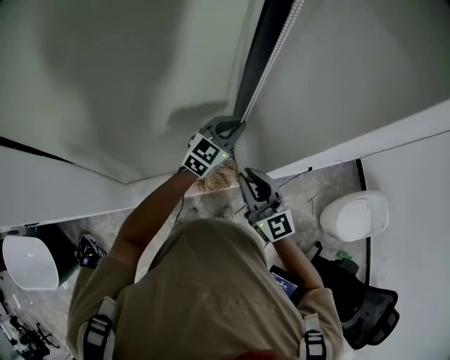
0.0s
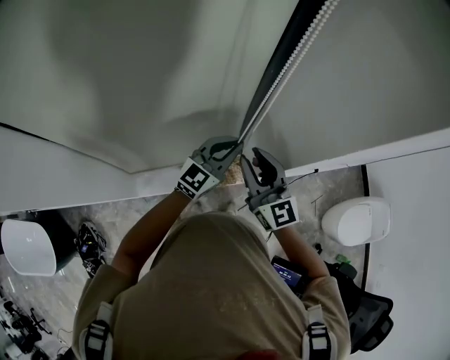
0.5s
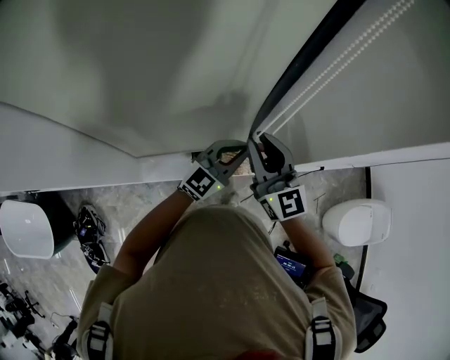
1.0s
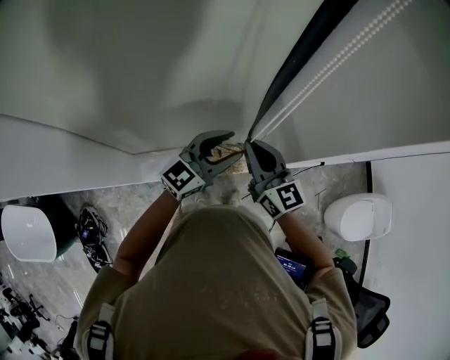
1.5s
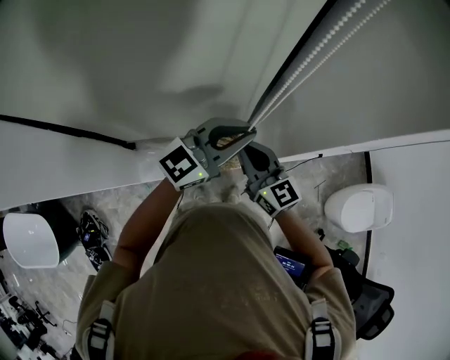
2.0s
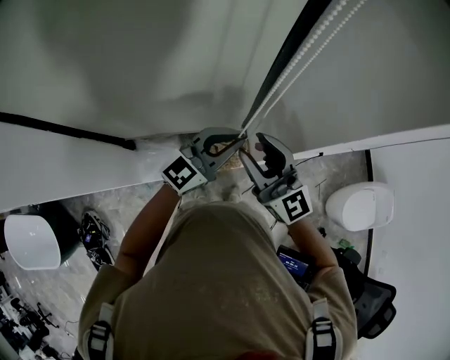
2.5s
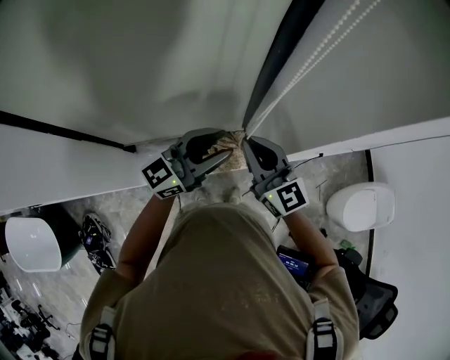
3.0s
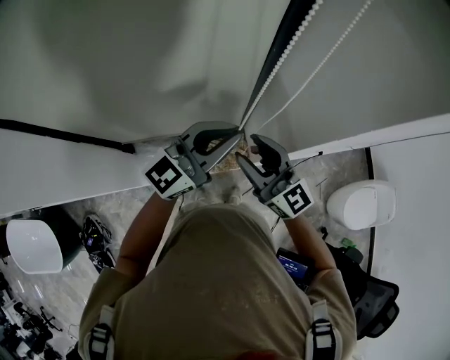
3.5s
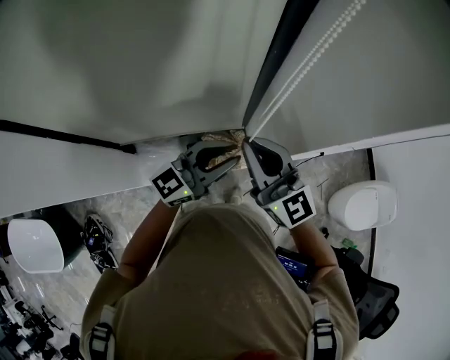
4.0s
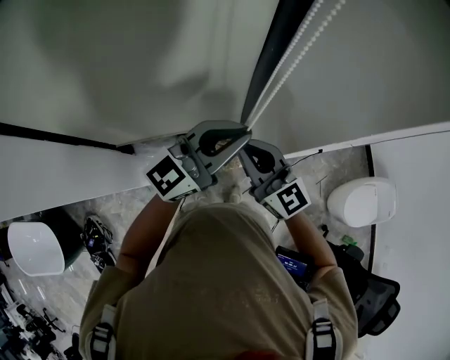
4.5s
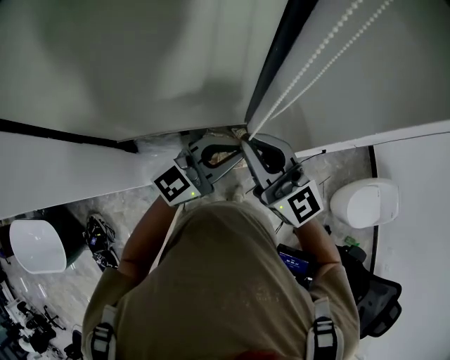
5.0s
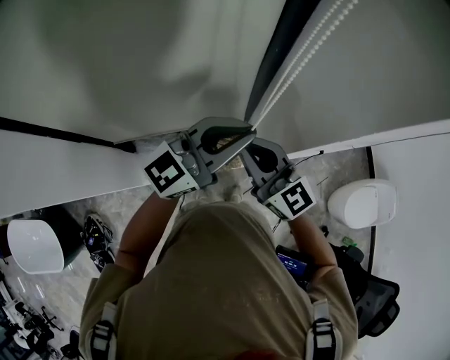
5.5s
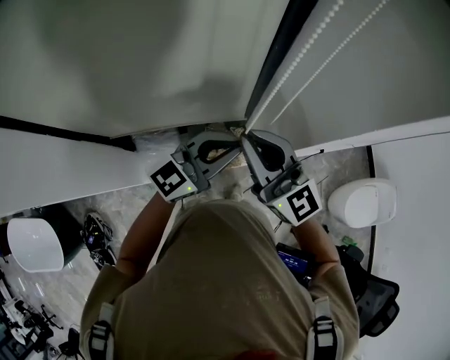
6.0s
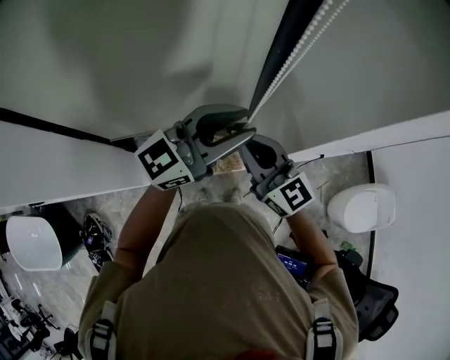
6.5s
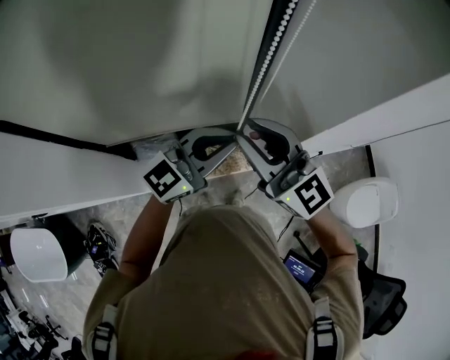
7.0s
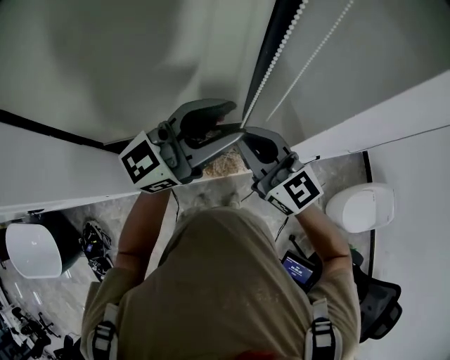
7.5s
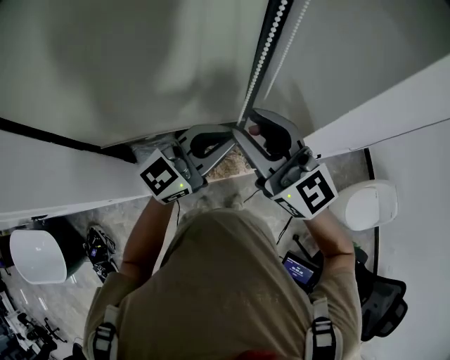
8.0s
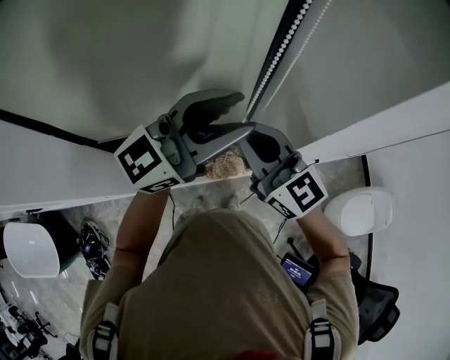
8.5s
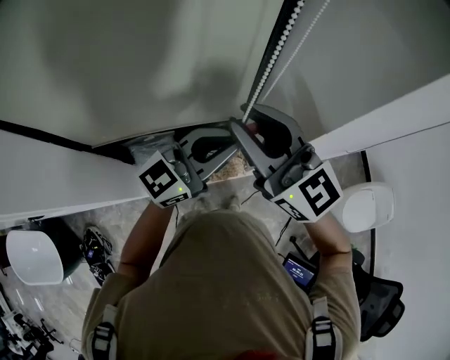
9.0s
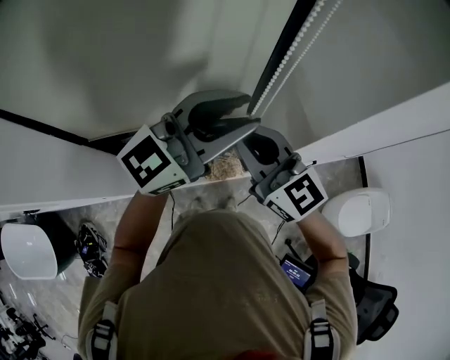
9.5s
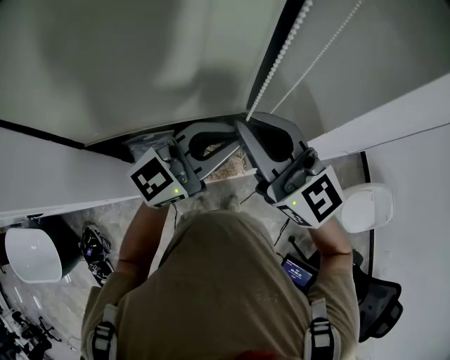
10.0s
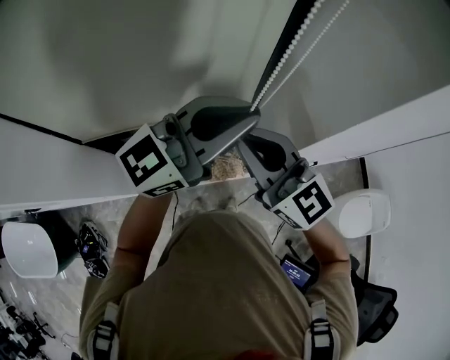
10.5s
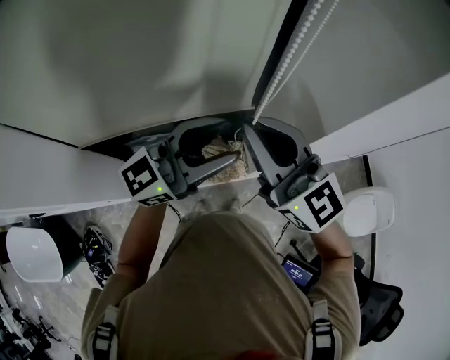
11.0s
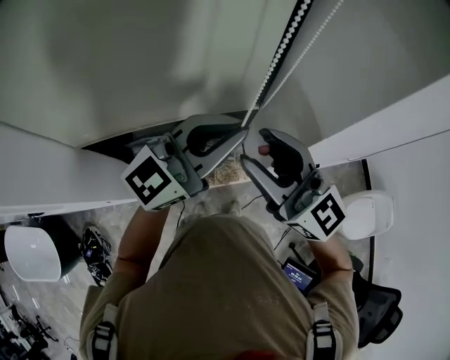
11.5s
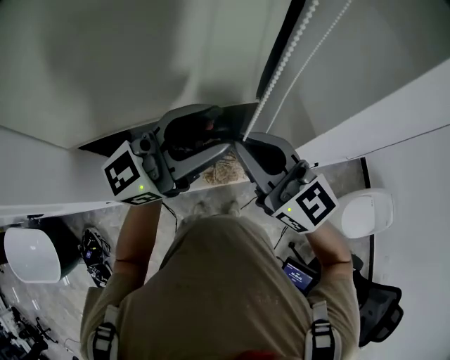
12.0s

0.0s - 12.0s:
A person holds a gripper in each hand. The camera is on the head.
0.0s - 2.0s: The left gripper heads backward and upward, covering about 15 cm, swivels roughly 20 degrees, and opens, then closes once more; the right gripper is displaced to the left by approximately 10 cm.
2.0s - 4.0s: The left gripper moves up and down over roughly 5 cm, changing direction 2 times, and opens, then closes once more; the right gripper moves up and down over approximately 10 cm, changing direction 2 times, and opens, then closes once more.
4.0s - 6.0s: The left gripper moves up and down over roughly 10 cm, changing direction 3 times; the right gripper swings up and down, some 5 cm each way, with 3 reversals.
6.0s - 8.0s: The right gripper moves up and down over roughly 10 cm, changing direction 3 times, and opens up. The left gripper moves up and down over roughly 15 cm, changing direction 3 times, and opens, then closes again.
8.0s - 10.0s: The left gripper moves up and down over roughly 10 cm, changing direction 3 times, and opens, then closes again. Meanwhile the right gripper closes up.
10.0s - 12.0s: The right gripper opens, then closes once more. Meanwhile the left gripper goes up and down, roughly 10 cm each way, reversing 2 times, and opens.

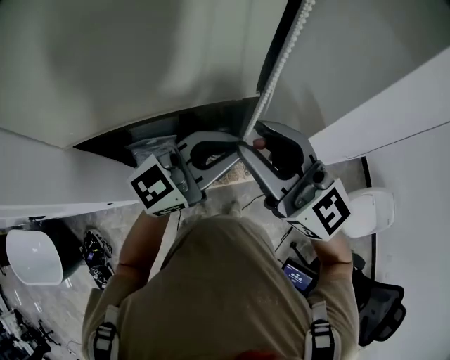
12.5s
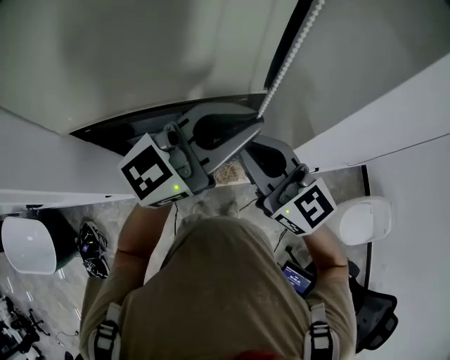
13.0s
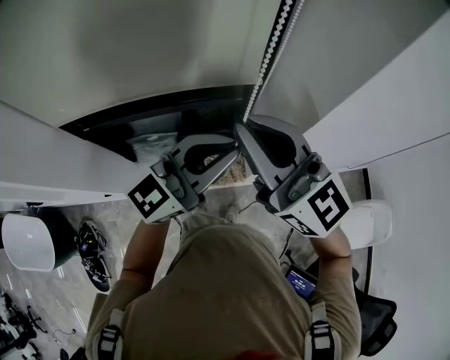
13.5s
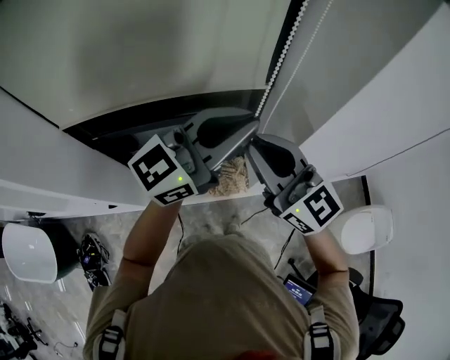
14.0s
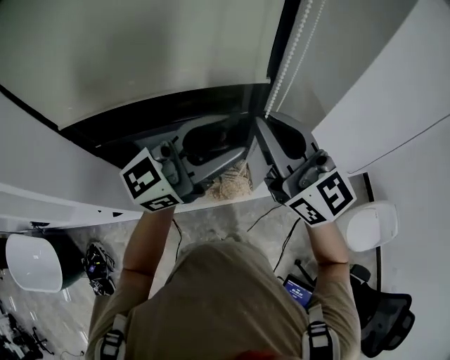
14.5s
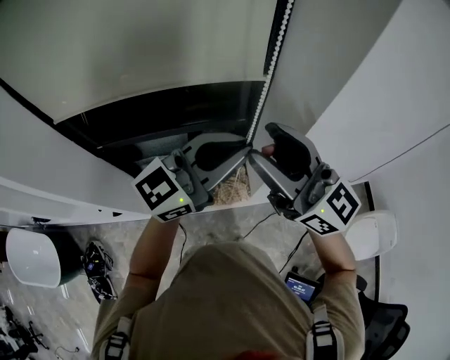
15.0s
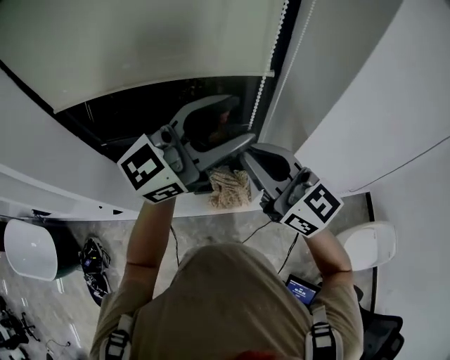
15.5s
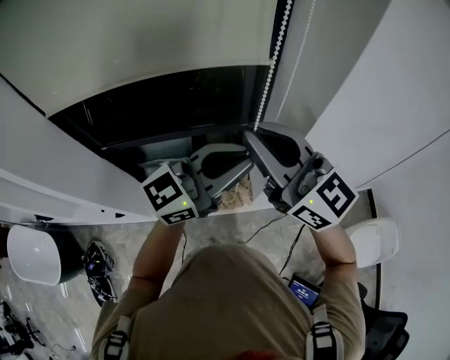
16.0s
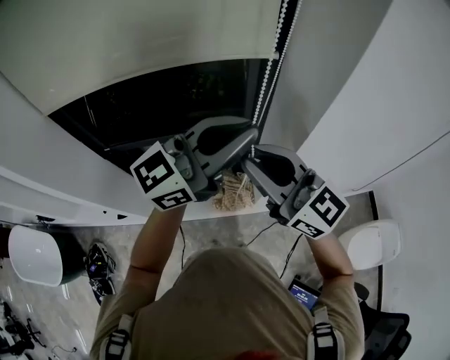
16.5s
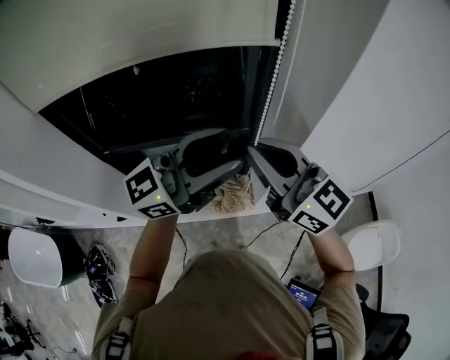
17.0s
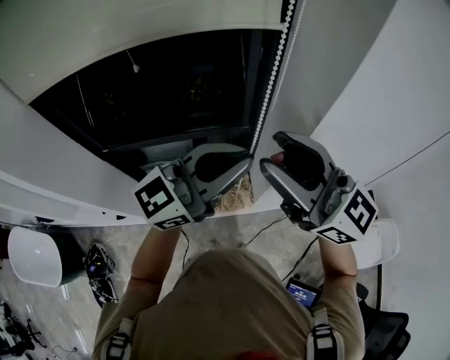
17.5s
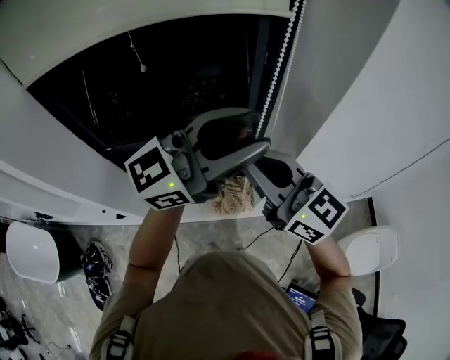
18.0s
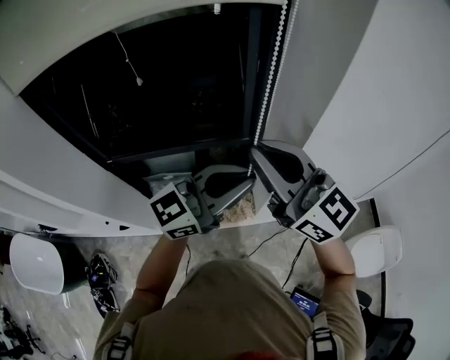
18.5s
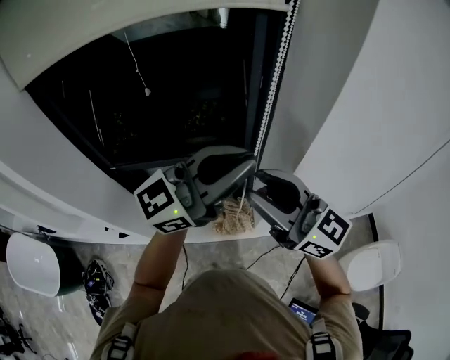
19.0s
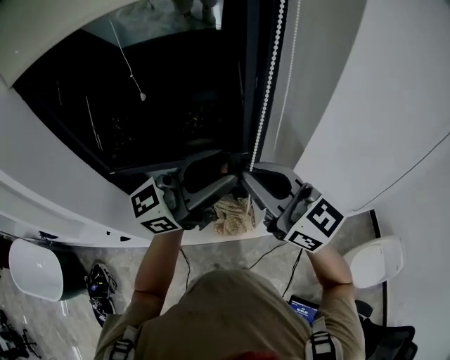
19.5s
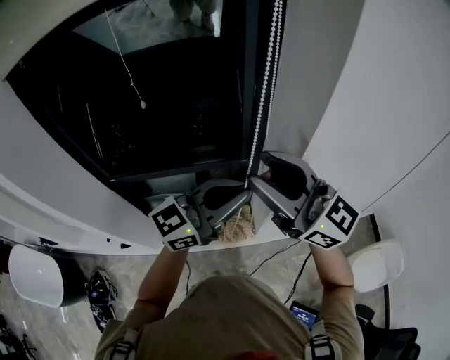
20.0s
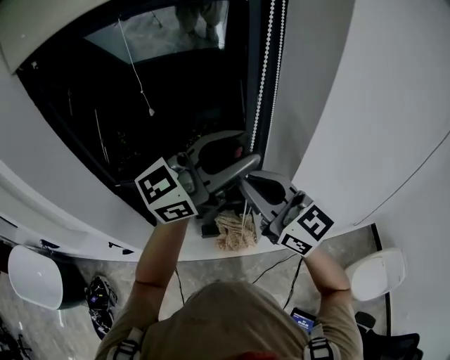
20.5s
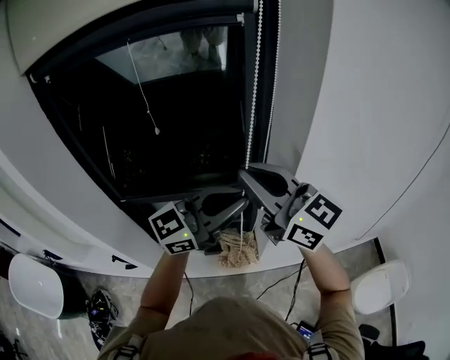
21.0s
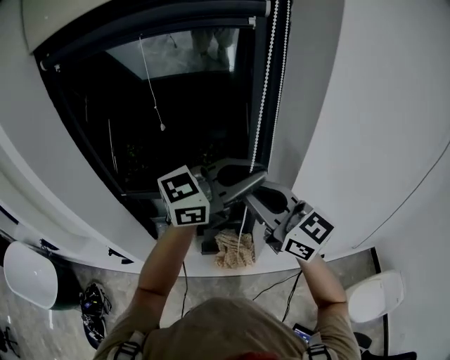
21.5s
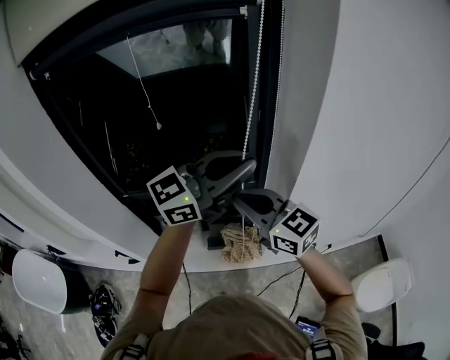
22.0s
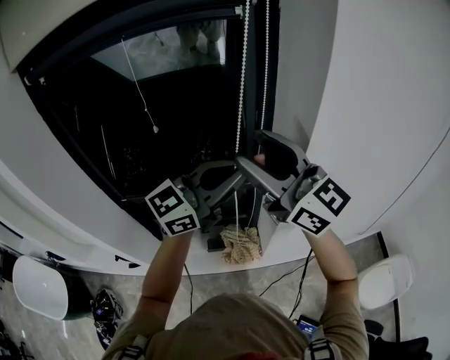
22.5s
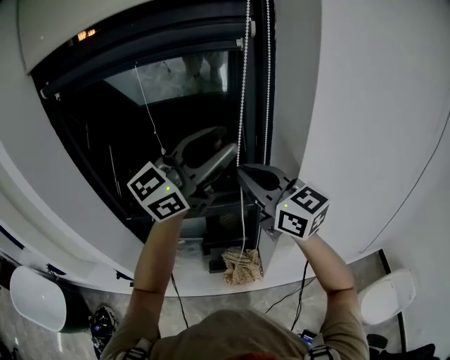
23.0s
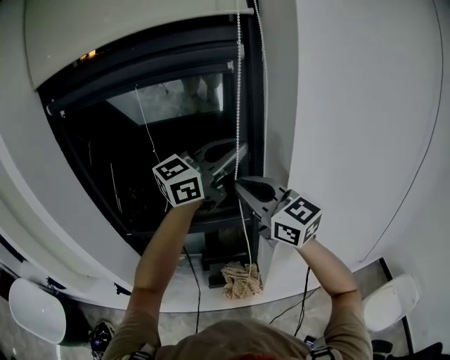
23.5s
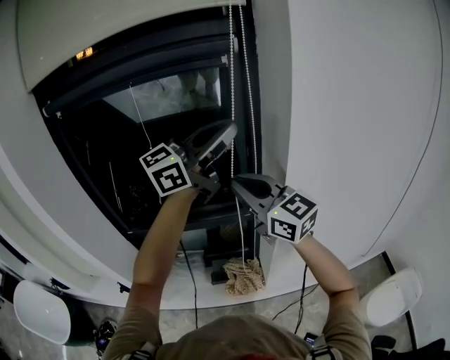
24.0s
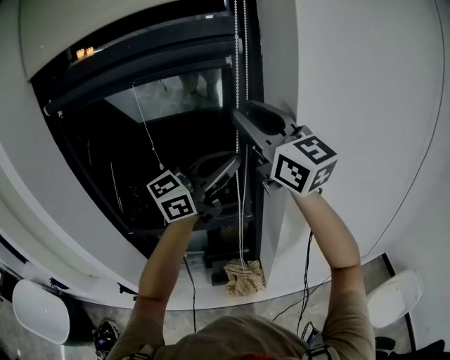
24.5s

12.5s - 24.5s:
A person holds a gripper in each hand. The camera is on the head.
12.5s - 14.5s: The left gripper moves up and down over some 10 cm, changing direction 2 times, and opens up. Meanwhile the right gripper moves up and down over about 10 cm, changing direction 3 times, and closes its fingers.
14.5s - 16.5s: The left gripper goes up and down, some 5 cm each way, reversing 2 times, and closes up, while the right gripper opens, then closes once more.
16.5s - 18.5s: The right gripper goes up and down, some 5 cm each way, reversing 2 times, and opens, then closes once more. Meanwhile the left gripper is displaced downward by about 5 cm, and opens and closes again.
18.5s - 20.5s: The left gripper swings up and down, about 15 cm each way, with 2 reversals, and opens up. Meanwhile the right gripper opens, then closes once more.
20.5s - 22.5s: The right gripper moves up and down over approximately 15 cm, changing direction 2 times, and opens its fingers; the left gripper closes up.
22.5s - 24.5s: Both grippers move upward, approximately 10 cm. The right gripper closes; the left gripper opens and closes again.

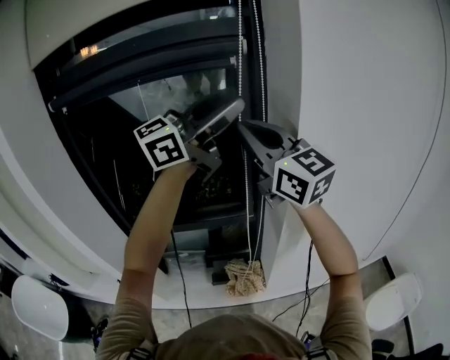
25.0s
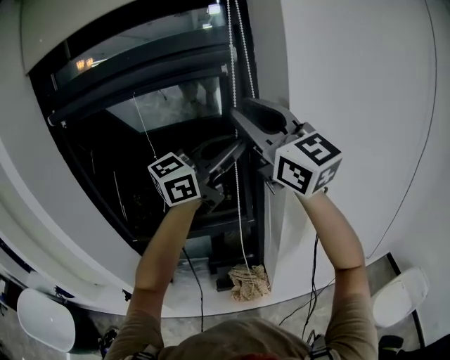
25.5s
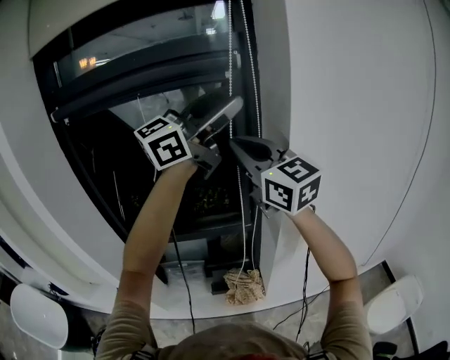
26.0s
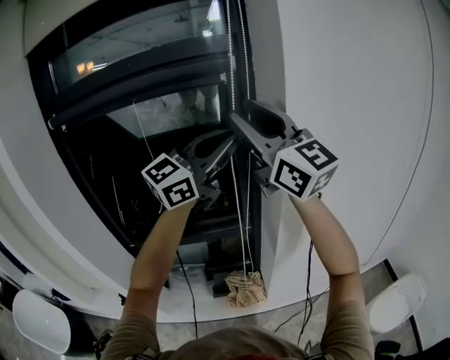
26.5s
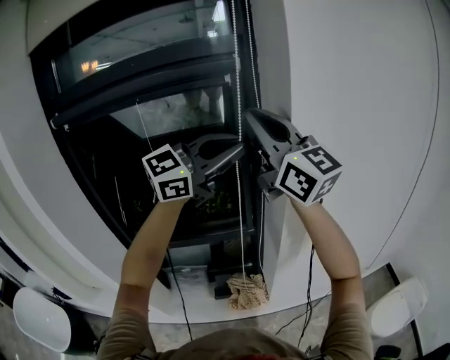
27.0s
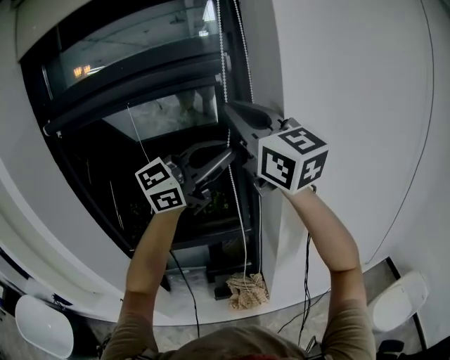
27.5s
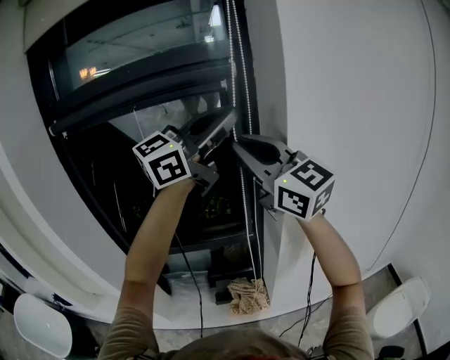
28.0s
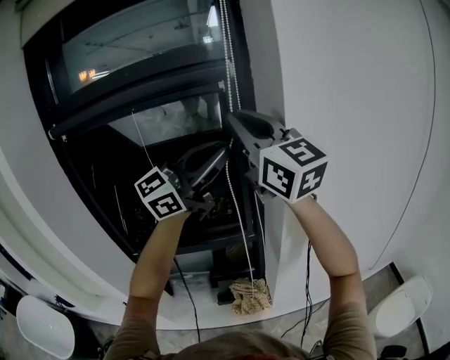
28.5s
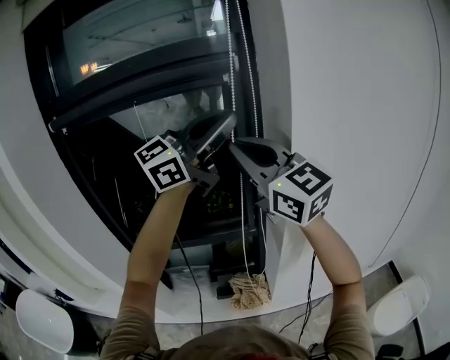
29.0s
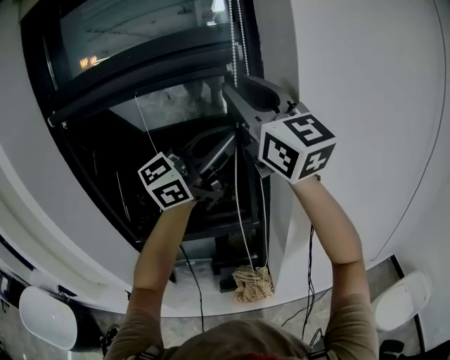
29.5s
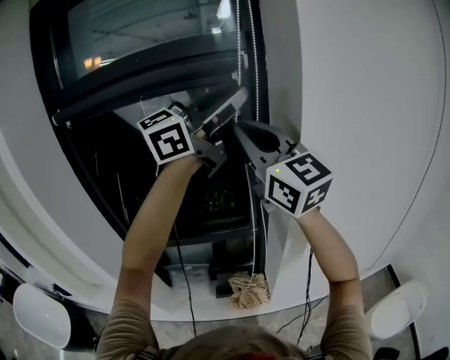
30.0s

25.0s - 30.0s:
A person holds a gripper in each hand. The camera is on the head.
25.0s - 27.5s: The right gripper moves up and down over approximately 10 cm, changing direction 2 times, and opens, then closes once more, while the left gripper swings up and down, roughly 10 cm each way, with 2 reversals, and closes up.
27.5s - 30.0s: The left gripper moves up and down over approximately 10 cm, changing direction 4 times. Meanwhile the right gripper goes up and down, roughly 10 cm each way, reversing 4 times, and opens and closes again.
